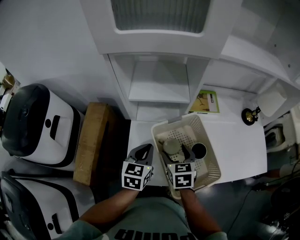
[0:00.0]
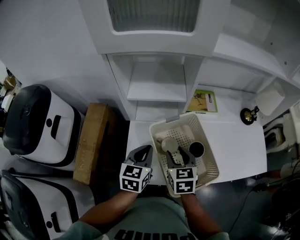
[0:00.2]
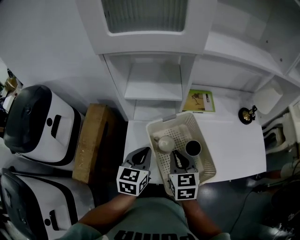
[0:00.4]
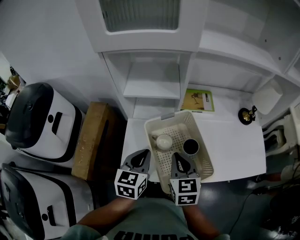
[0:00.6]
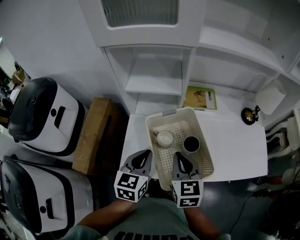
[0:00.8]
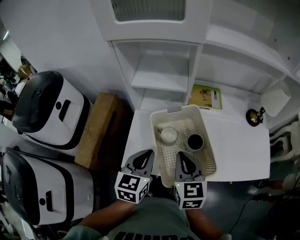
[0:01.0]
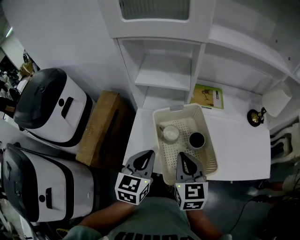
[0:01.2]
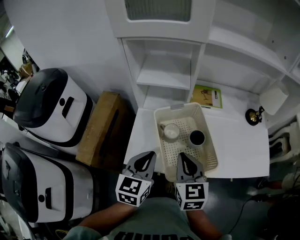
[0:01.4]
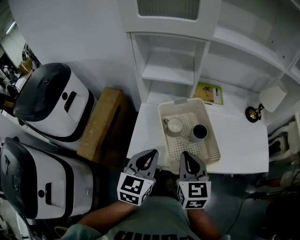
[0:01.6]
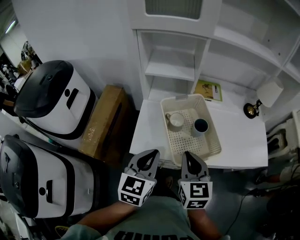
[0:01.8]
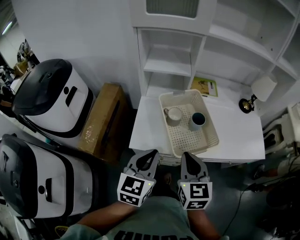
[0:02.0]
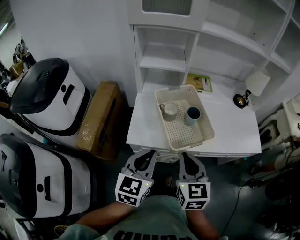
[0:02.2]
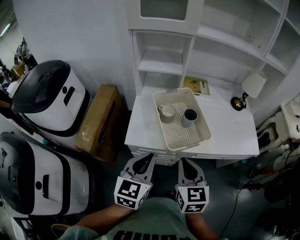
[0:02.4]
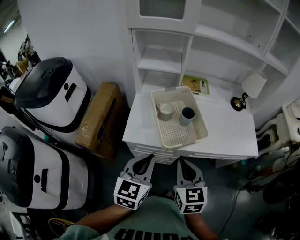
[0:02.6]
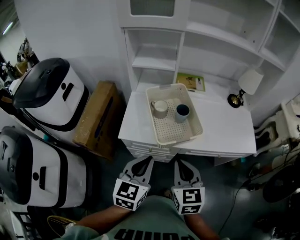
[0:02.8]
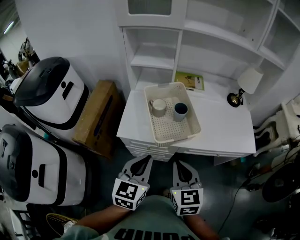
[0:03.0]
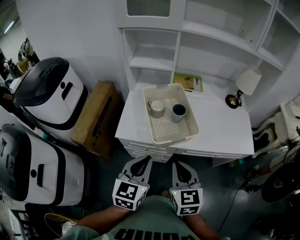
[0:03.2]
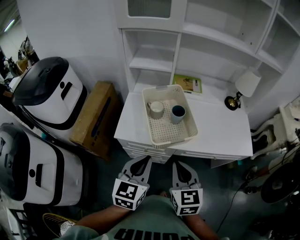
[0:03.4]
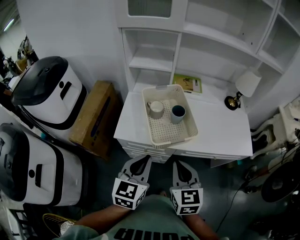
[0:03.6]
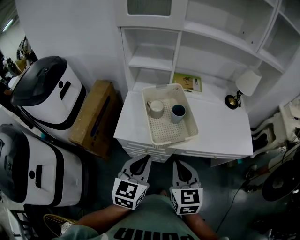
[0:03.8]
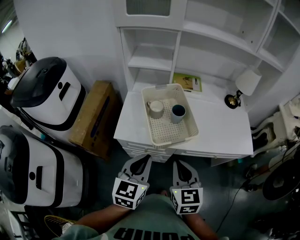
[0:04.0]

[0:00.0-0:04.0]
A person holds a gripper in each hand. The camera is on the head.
0.0 to 1.4 s: The two grippers go approximately 15 cm backward and upward. The right gripper closes up.
1.4 to 2.6 s: Both grippers travel together backward, roughly 20 cm.
2.6 to 4.0 s: The grippers make only small movements.

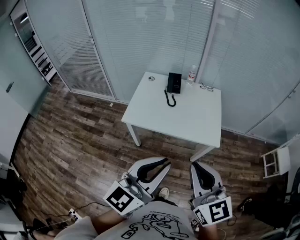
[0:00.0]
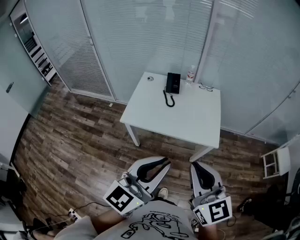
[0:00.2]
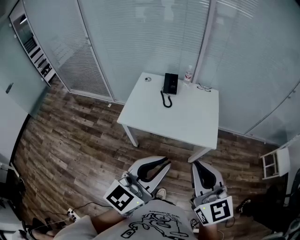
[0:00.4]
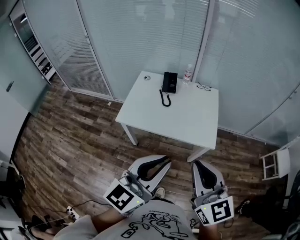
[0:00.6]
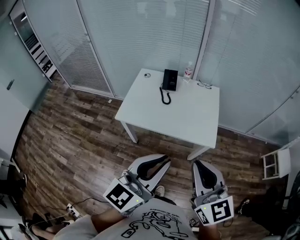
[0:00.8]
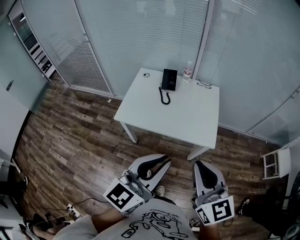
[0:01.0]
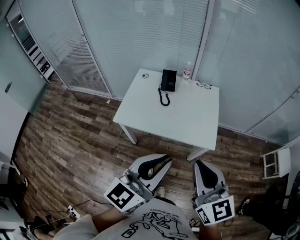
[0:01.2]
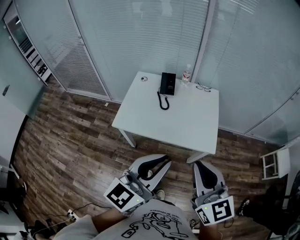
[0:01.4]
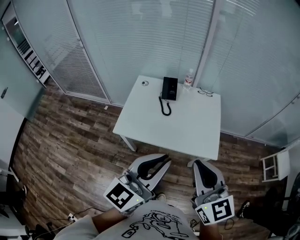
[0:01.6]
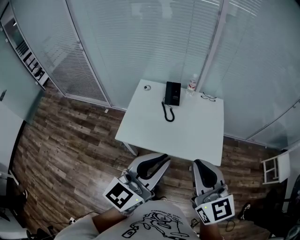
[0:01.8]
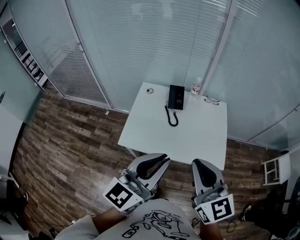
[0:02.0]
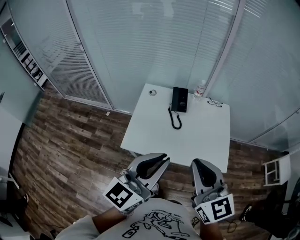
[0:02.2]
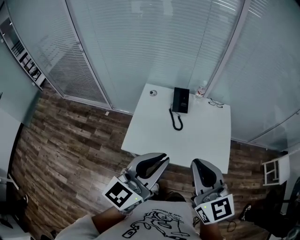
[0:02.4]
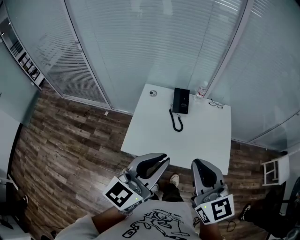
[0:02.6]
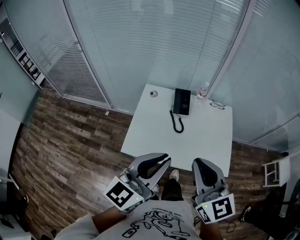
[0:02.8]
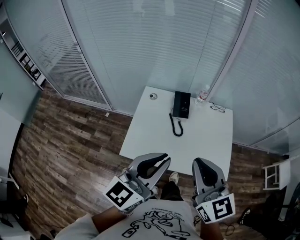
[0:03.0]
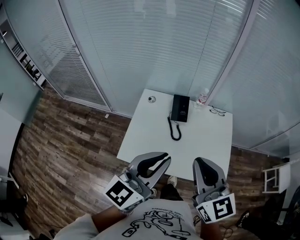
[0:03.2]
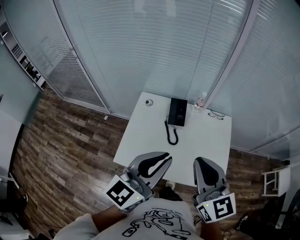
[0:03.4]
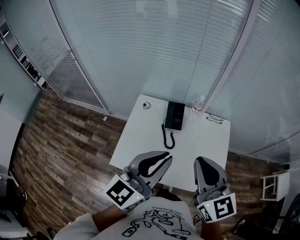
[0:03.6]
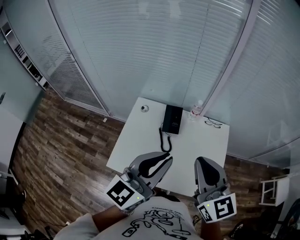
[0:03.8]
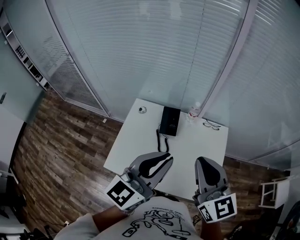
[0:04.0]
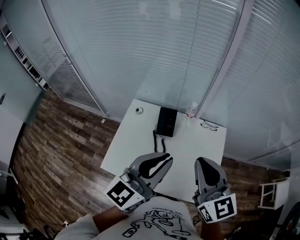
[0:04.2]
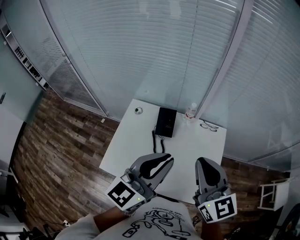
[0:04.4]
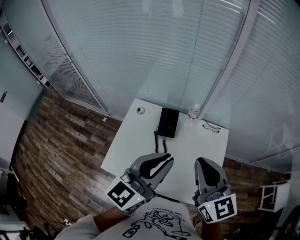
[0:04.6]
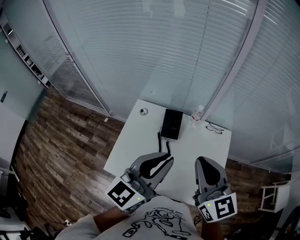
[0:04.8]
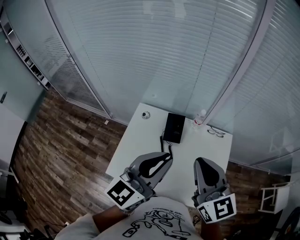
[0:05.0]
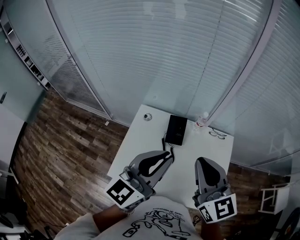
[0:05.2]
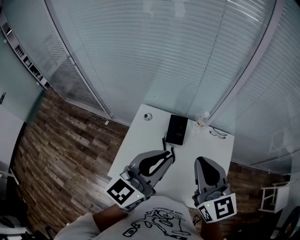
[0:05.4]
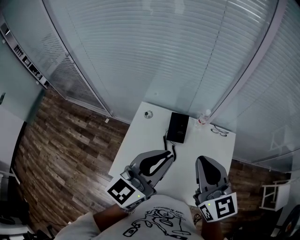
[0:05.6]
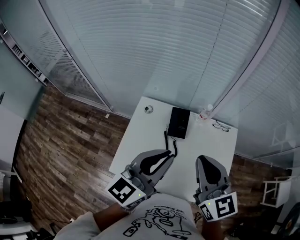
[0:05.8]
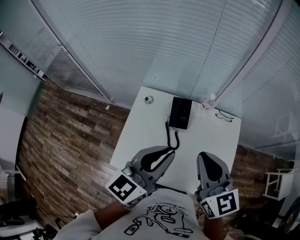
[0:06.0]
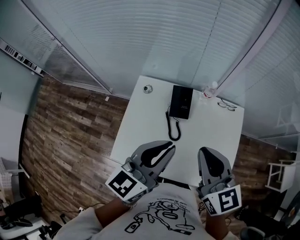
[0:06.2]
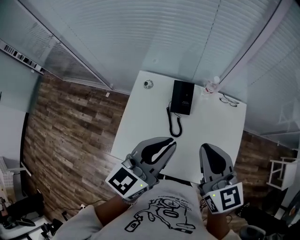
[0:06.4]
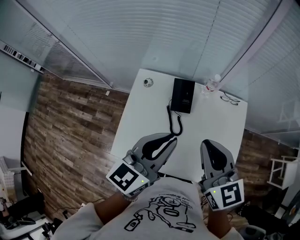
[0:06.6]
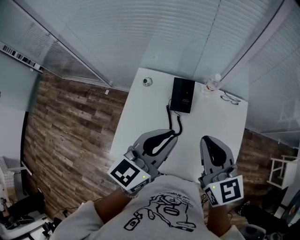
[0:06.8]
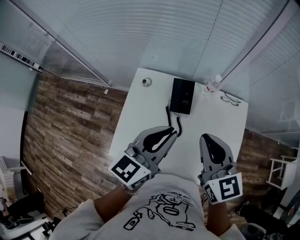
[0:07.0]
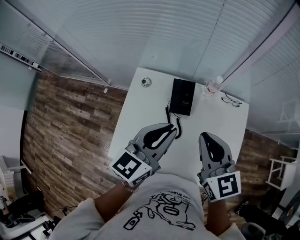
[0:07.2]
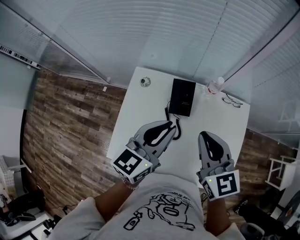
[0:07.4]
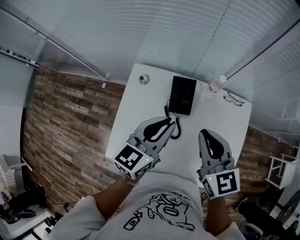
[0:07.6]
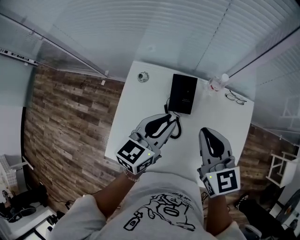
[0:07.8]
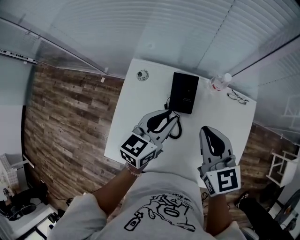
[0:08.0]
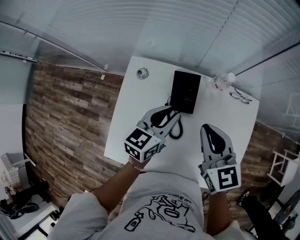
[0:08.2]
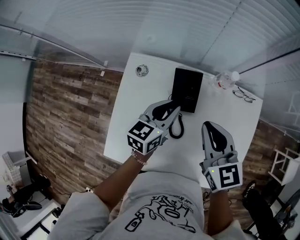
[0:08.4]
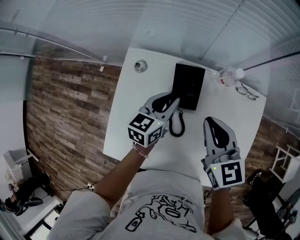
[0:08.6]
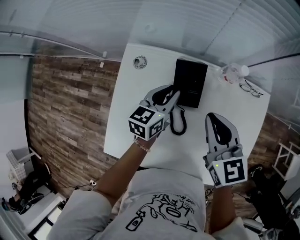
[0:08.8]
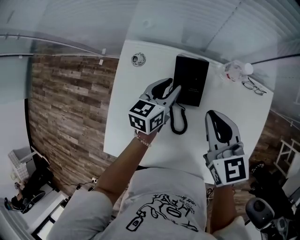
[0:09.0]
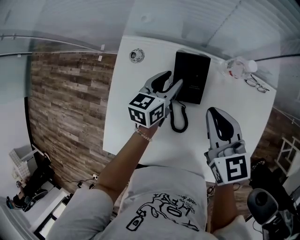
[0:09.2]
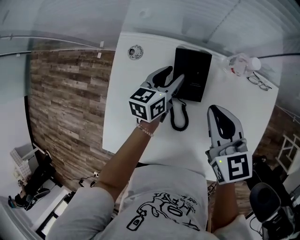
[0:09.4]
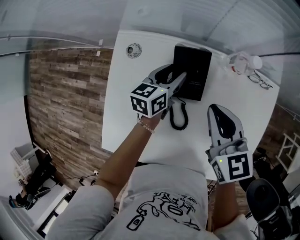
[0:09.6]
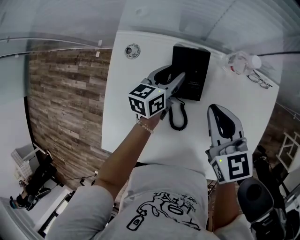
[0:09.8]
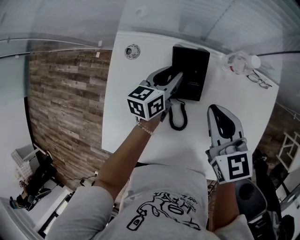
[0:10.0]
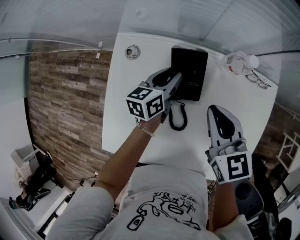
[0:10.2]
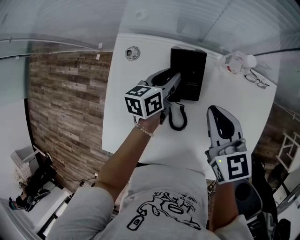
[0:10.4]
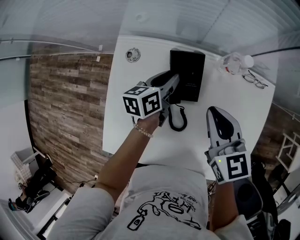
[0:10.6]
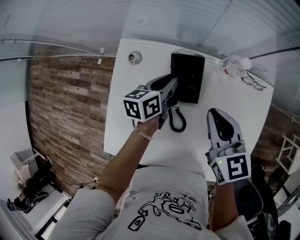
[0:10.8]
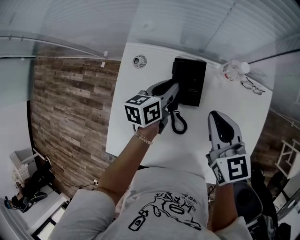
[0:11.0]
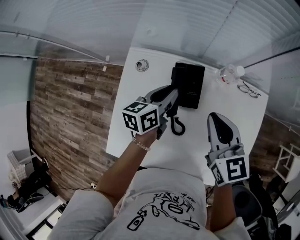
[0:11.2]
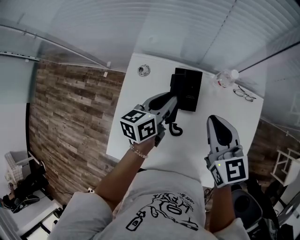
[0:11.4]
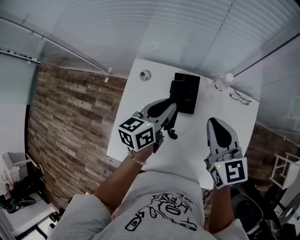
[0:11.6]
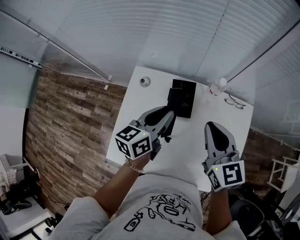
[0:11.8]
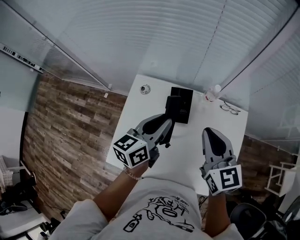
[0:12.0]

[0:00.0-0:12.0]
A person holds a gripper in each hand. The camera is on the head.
0.0 to 1.6 s: The two grippers go about 10 cm forward.
1.6 to 3.0 s: Both grippers travel together forward and to the left, roughly 20 cm.
3.0 to 4.4 s: The grippers both shift forward and to the right by about 20 cm.
4.4 to 6.0 s: The two grippers go approximately 10 cm to the left.
6.0 to 7.6 s: The grippers both shift downward and forward by some 15 cm.
7.6 to 9.0 s: The right gripper heads downward and forward, covering some 15 cm. Meanwhile the left gripper is displaced downward and forward by some 25 cm, and opens up.
9.0 to 10.4 s: The grippers move only a little.
10.4 to 12.0 s: The right gripper goes roughly 15 cm upward; the left gripper travels upward and backward by approximately 25 cm.

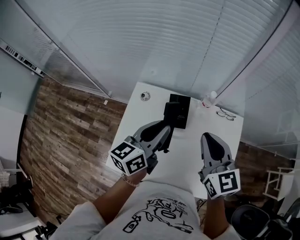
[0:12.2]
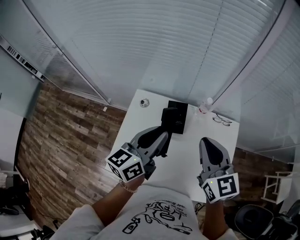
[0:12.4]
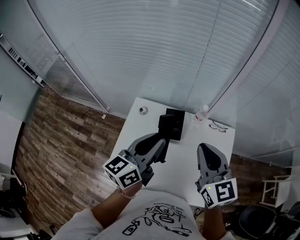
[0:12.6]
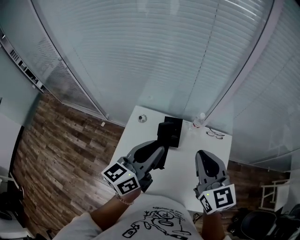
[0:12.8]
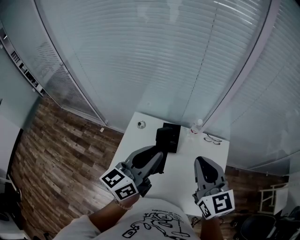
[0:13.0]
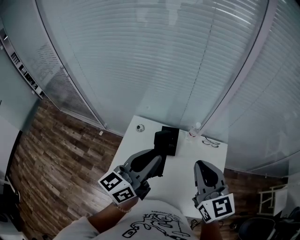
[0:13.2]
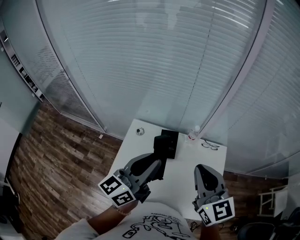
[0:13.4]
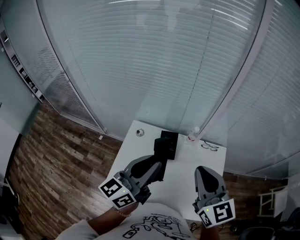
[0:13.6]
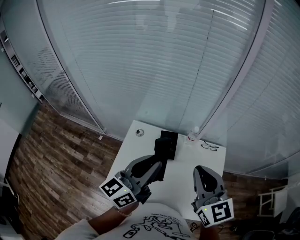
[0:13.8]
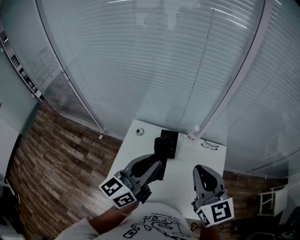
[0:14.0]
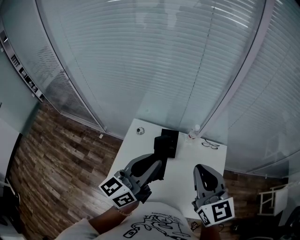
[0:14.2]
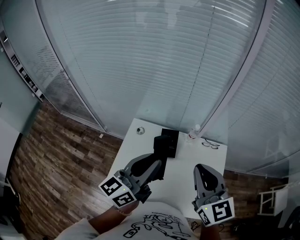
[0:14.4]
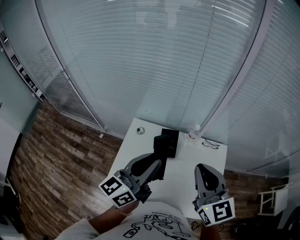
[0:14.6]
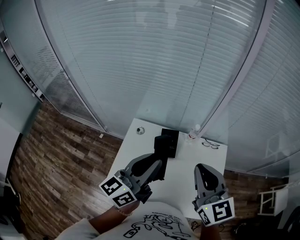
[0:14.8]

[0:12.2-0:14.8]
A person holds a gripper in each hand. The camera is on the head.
12.2 to 13.4 s: Both grippers travel together upward and backward, some 15 cm.
13.4 to 14.8 s: Both grippers stay put.

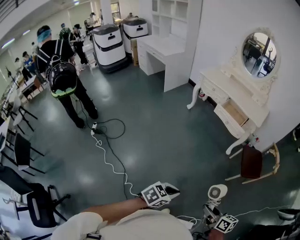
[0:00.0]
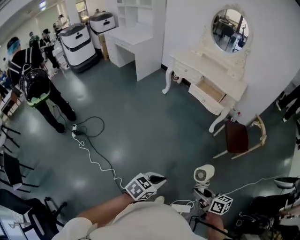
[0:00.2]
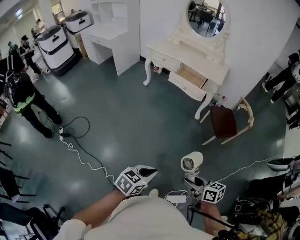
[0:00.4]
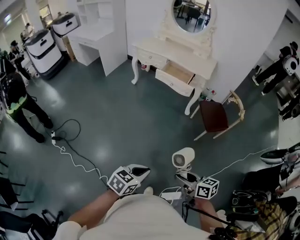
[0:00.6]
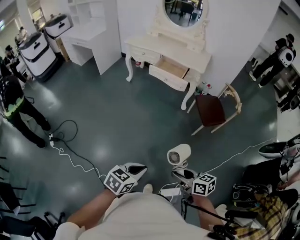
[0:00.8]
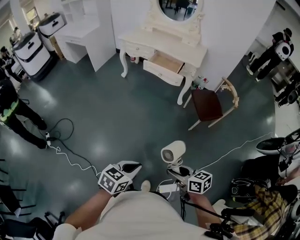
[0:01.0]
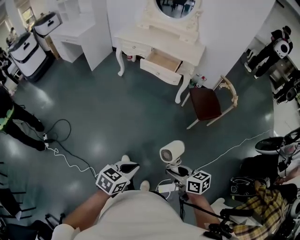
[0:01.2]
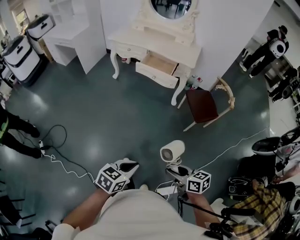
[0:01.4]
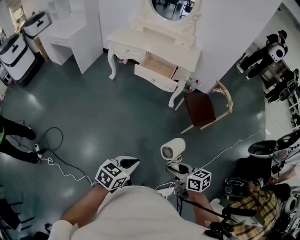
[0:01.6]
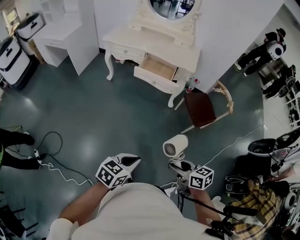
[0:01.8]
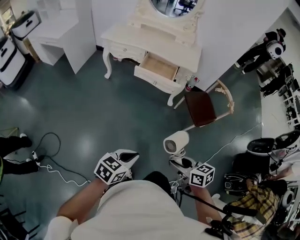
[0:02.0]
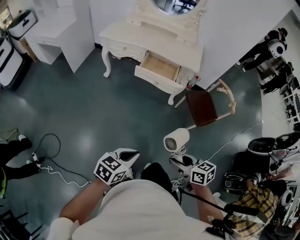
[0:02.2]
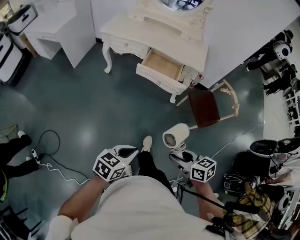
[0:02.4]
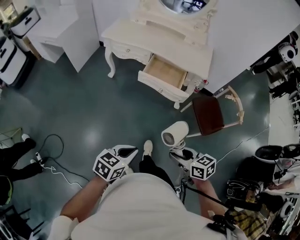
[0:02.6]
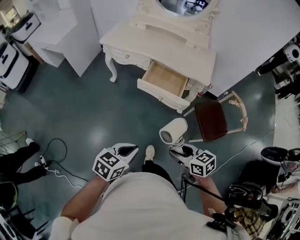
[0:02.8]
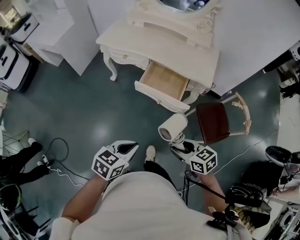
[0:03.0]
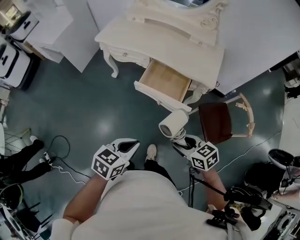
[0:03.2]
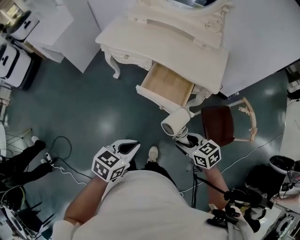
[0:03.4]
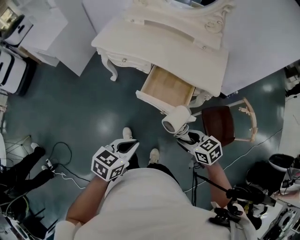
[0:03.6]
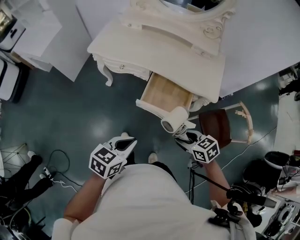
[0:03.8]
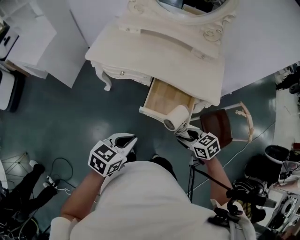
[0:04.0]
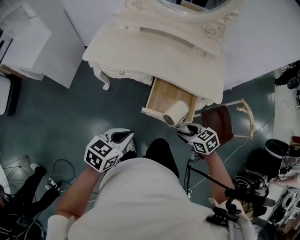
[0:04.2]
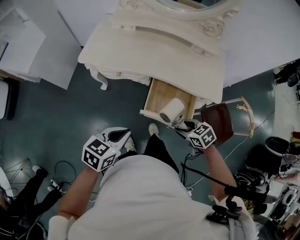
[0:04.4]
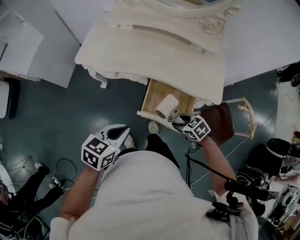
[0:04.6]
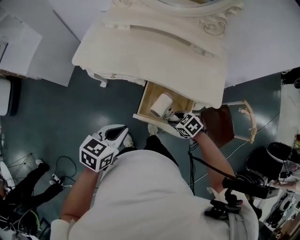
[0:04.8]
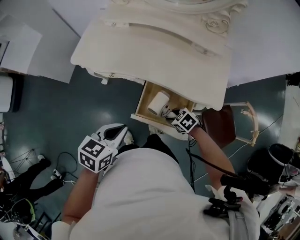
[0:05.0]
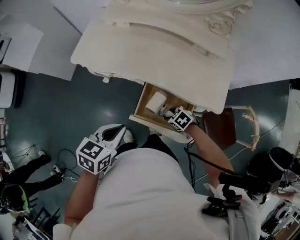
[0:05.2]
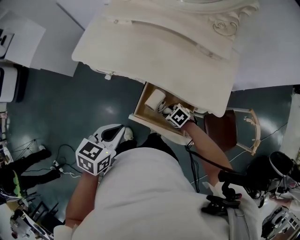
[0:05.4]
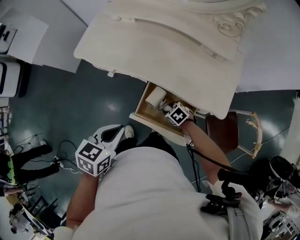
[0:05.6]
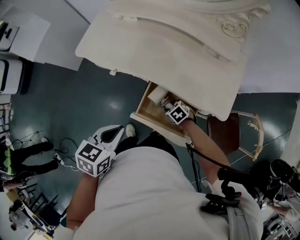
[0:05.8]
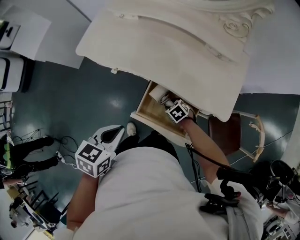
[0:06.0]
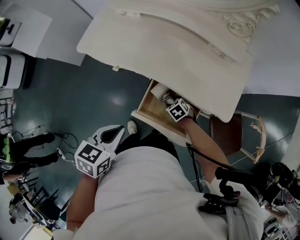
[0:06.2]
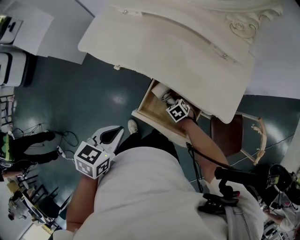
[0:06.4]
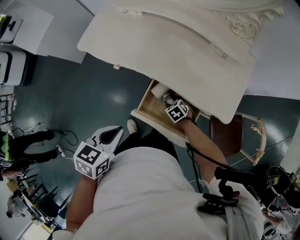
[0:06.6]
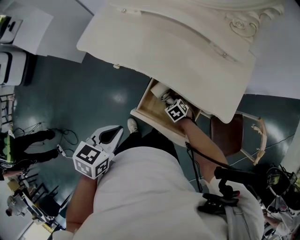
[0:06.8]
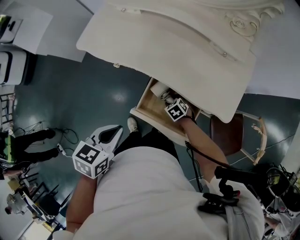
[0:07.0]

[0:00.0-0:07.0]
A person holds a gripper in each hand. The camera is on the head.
0.0 to 1.4 s: The right gripper shifts approximately 10 cm forward; the left gripper shifts roughly 15 cm forward and to the right.
1.4 to 2.8 s: The pair of grippers is taken forward, roughly 40 cm.
2.8 to 4.2 s: The two grippers go about 35 cm forward.
4.2 to 5.6 s: The right gripper shifts about 20 cm downward, and changes its angle by roughly 30 degrees; the left gripper shifts by roughly 15 cm.
5.6 to 7.0 s: The right gripper goes about 5 cm downward.
